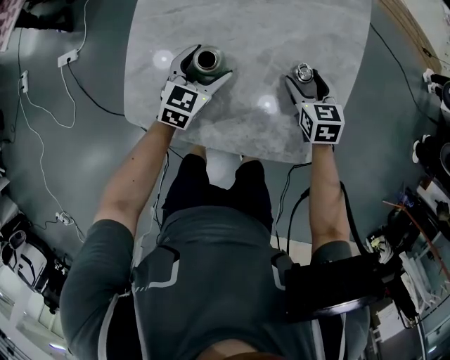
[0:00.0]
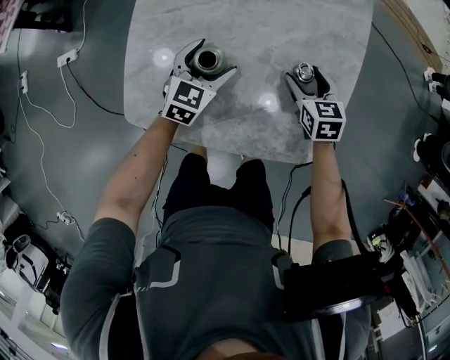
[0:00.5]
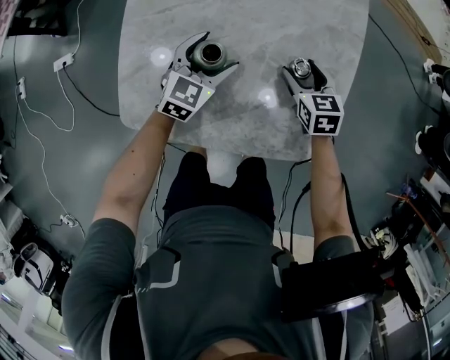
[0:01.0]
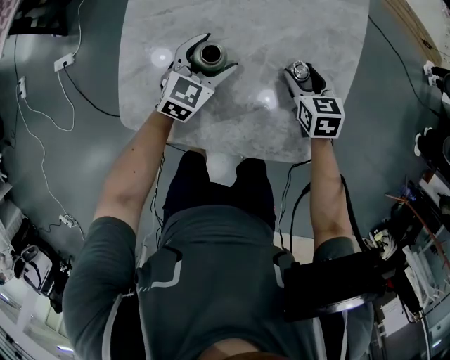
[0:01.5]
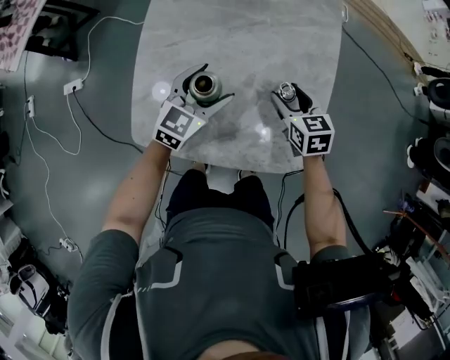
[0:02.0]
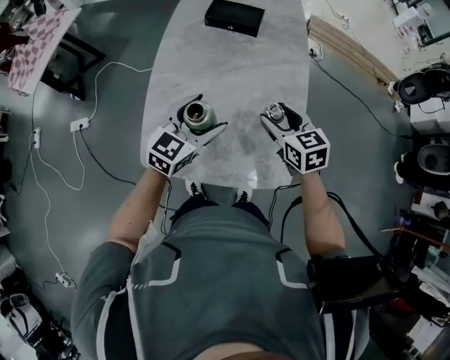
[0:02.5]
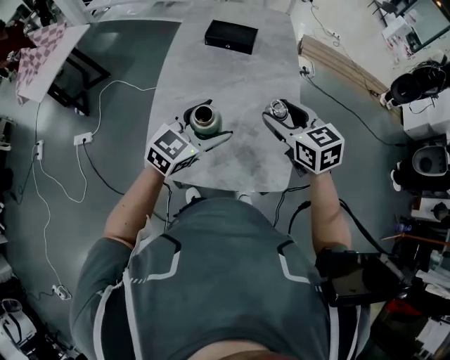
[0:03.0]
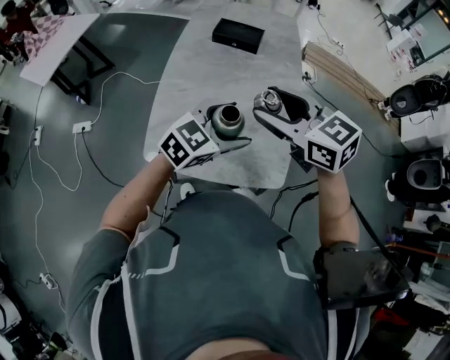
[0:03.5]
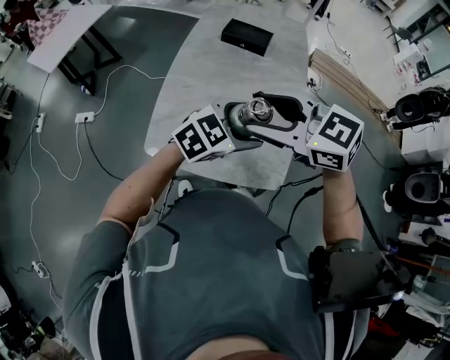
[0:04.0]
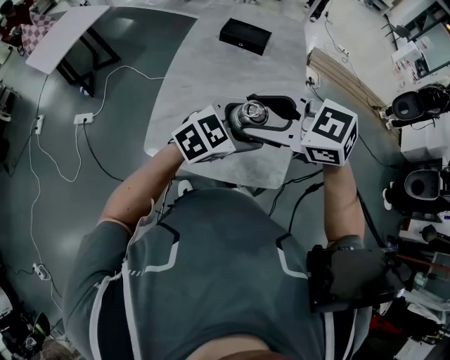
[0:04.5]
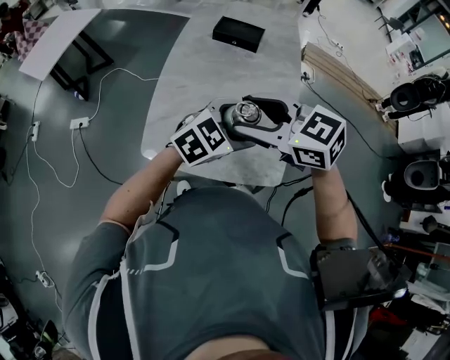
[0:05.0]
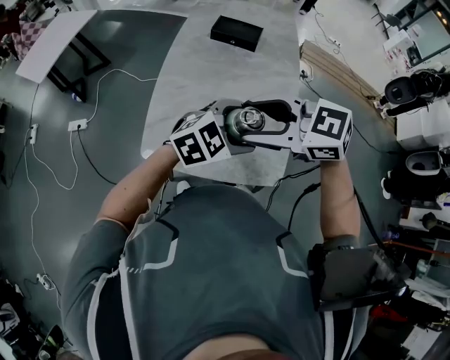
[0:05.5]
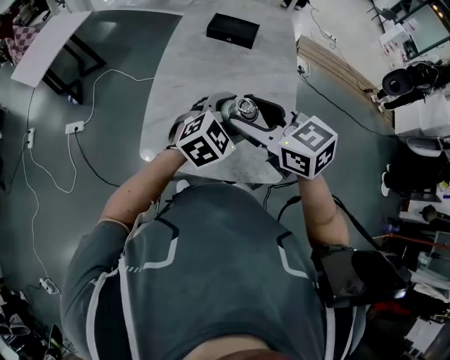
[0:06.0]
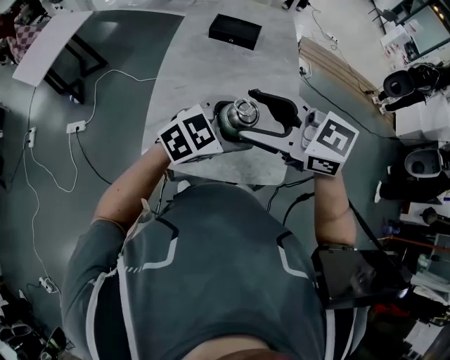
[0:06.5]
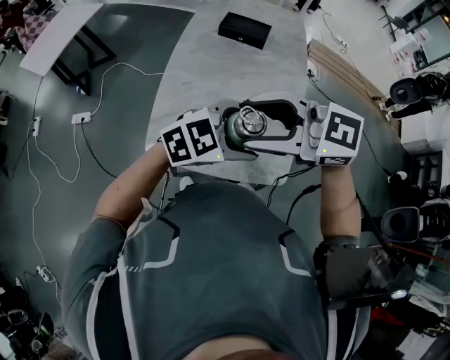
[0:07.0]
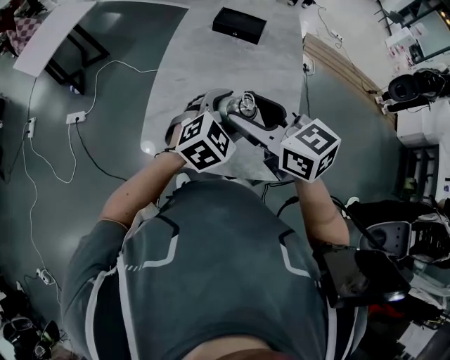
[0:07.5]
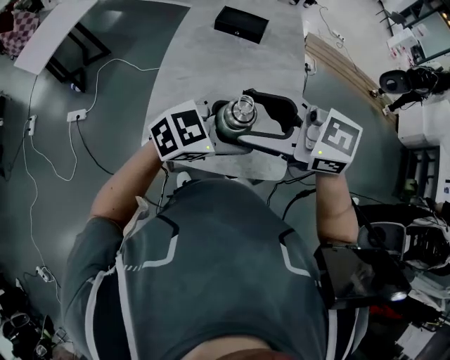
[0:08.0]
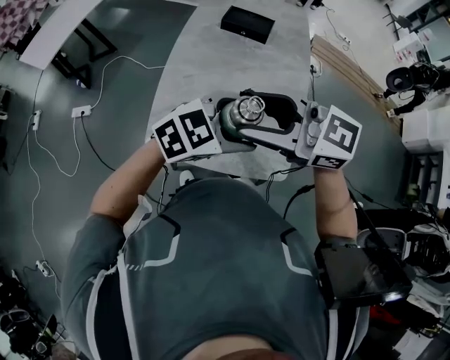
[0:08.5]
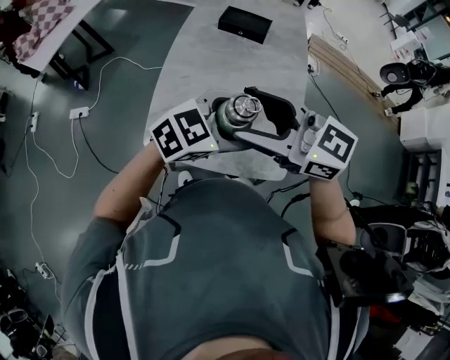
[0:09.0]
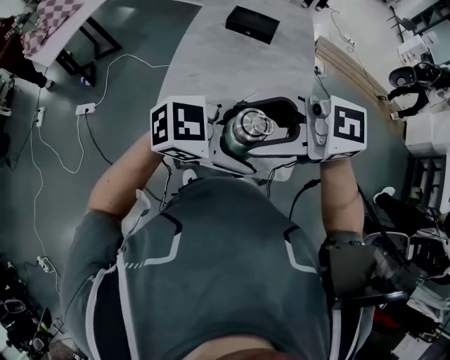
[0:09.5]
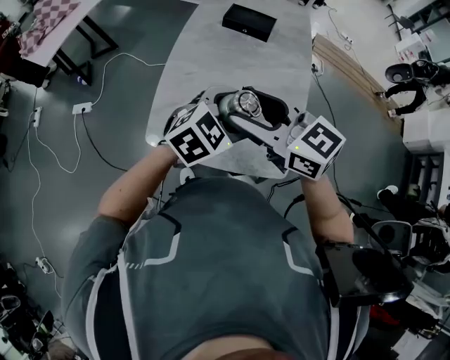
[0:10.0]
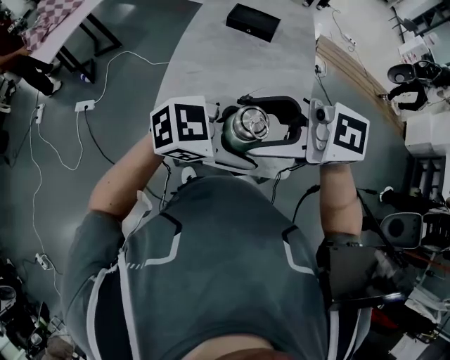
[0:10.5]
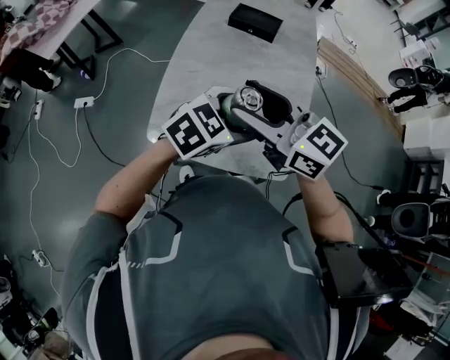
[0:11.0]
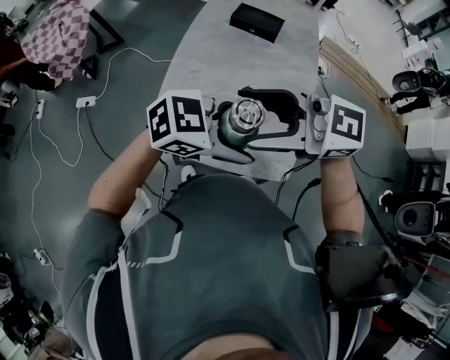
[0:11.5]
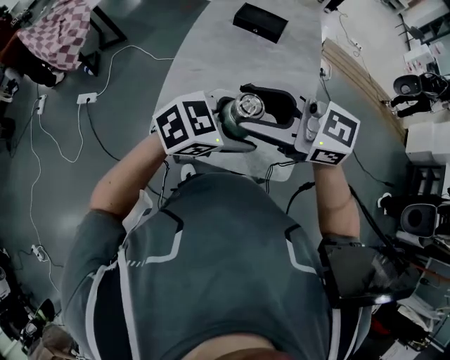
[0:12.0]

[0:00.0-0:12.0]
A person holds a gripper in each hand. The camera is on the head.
0:00.0 to 0:02.0: Both grippers move upward, some 10 cm.
0:02.0 to 0:04.0: The right gripper goes some 40 cm upward, and rotates roughly 50 degrees. The left gripper shifts some 25 cm upward, and changes its angle by roughly 20 degrees.
0:04.0 to 0:06.0: The left gripper shifts by roughly 5 cm, while the right gripper moves about 5 cm, and rotates some 20 degrees.
0:06.0 to 0:08.0: The right gripper goes up and down, about 5 cm each way, reversing 2 times, and swivels some 30 degrees; the left gripper swings up and down, roughly 5 cm each way, with 2 reversals, and changes its angle by roughly 30 degrees.
0:08.0 to 0:10.0: The left gripper shifts by about 5 cm, and swivels roughly 20 degrees.
0:10.0 to 0:12.0: The right gripper swivels approximately 20 degrees; the left gripper swings up and down, roughly 5 cm each way, with 2 reversals.

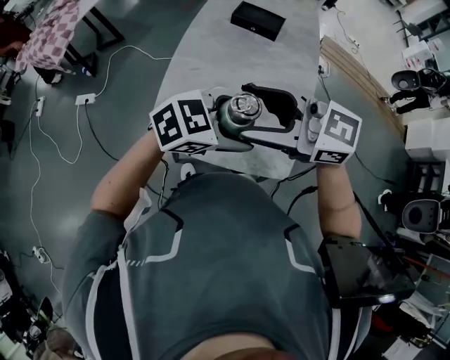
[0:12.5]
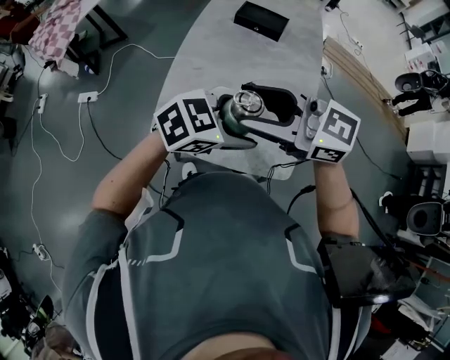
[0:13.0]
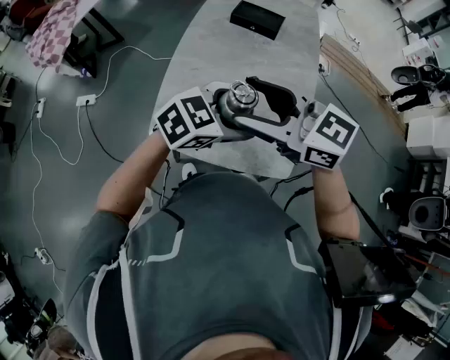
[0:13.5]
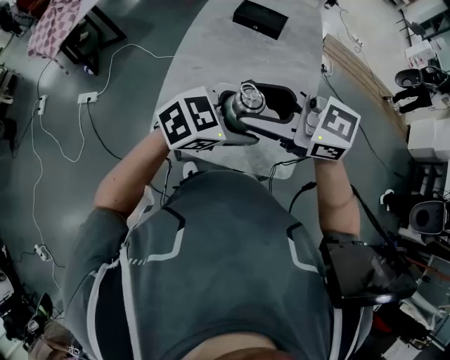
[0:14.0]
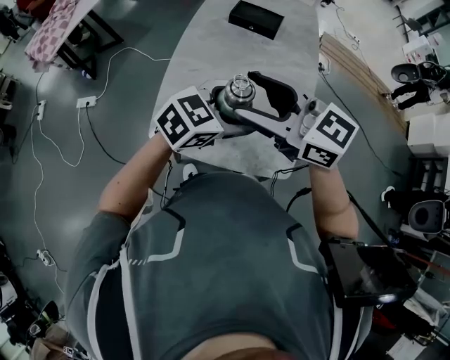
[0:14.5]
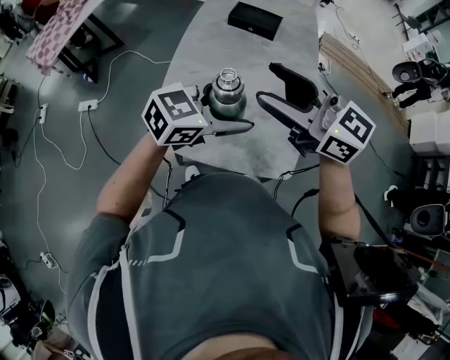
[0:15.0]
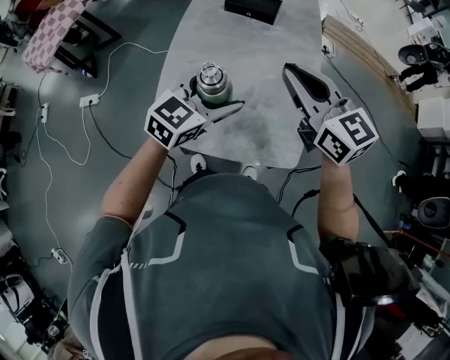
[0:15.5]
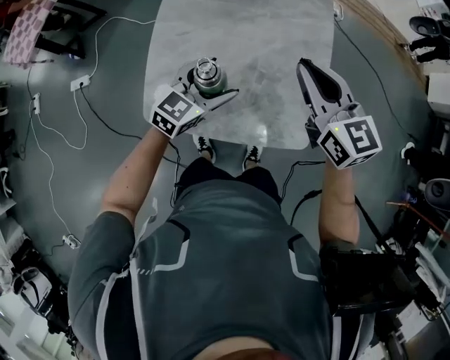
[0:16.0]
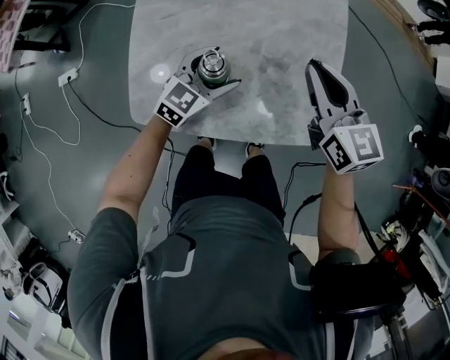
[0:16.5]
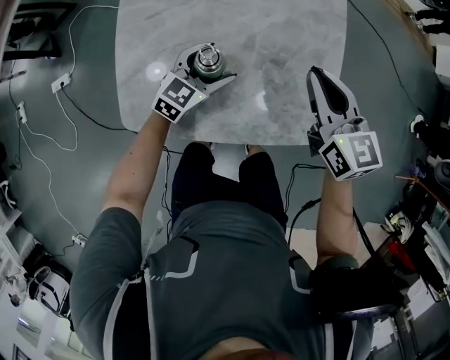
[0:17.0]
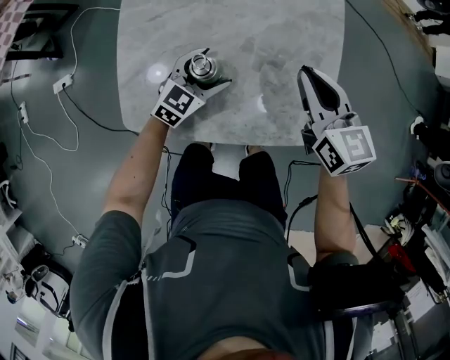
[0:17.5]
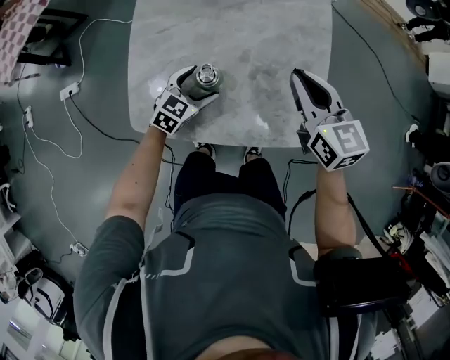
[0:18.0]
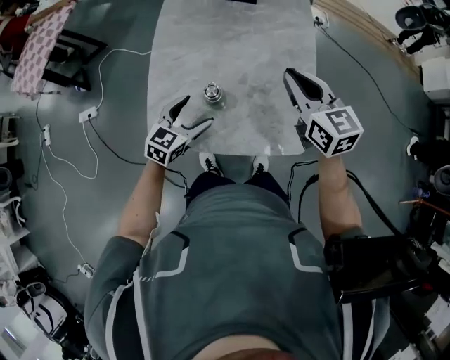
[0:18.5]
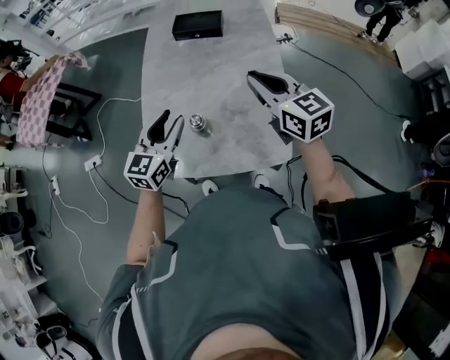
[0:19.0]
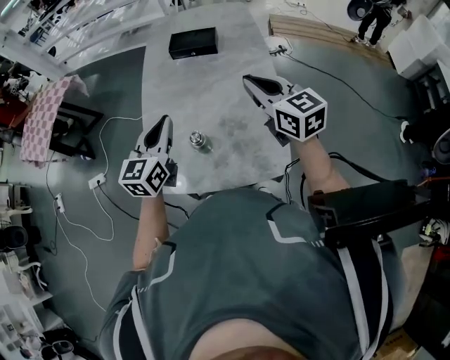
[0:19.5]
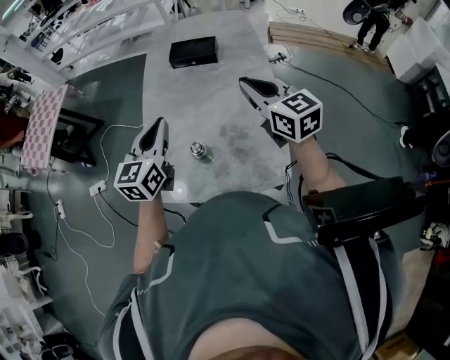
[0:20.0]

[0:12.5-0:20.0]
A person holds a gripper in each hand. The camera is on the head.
0:14.5 to 0:16.5: The grippers both shift downward by roughly 25 cm. The right gripper rotates about 50 degrees, and closes up.
0:16.5 to 0:18.0: The left gripper heads downward, covering roughly 5 cm.
0:18.0 to 0:20.0: The left gripper heads upward, covering roughly 35 cm, turns by roughly 40 degrees, and closes up. The right gripper moves upward, roughly 15 cm.

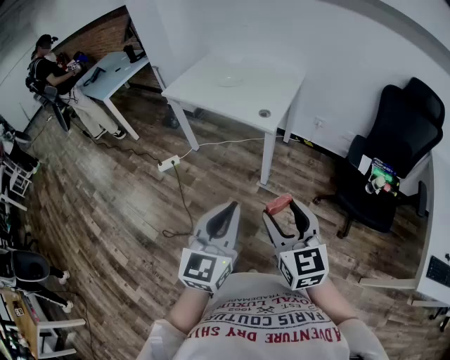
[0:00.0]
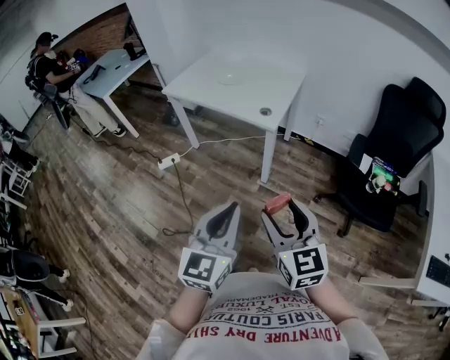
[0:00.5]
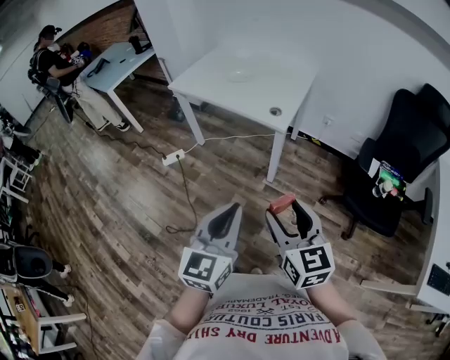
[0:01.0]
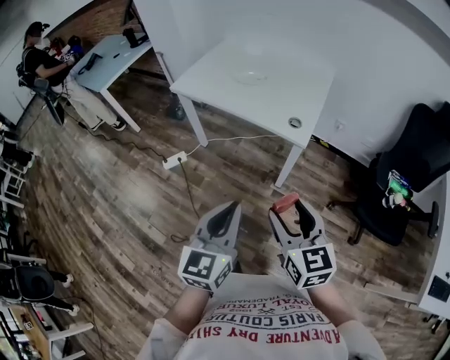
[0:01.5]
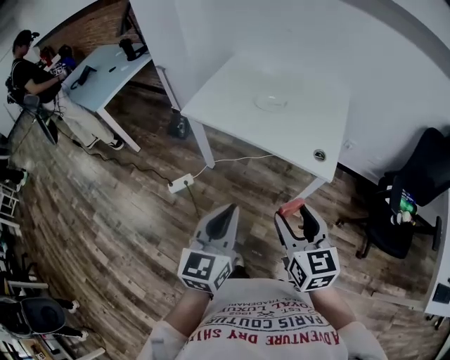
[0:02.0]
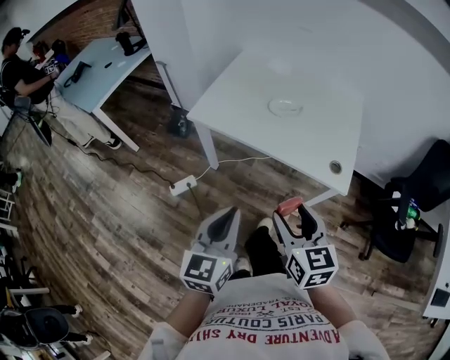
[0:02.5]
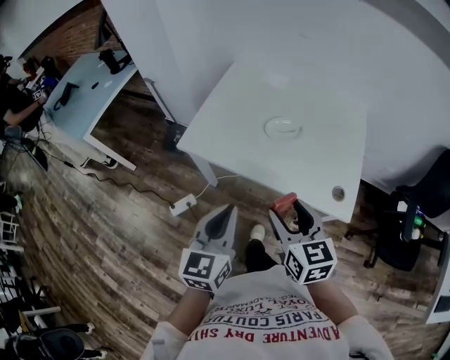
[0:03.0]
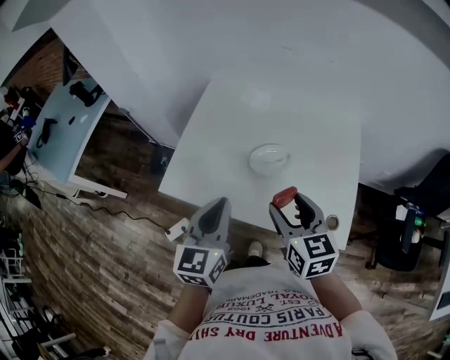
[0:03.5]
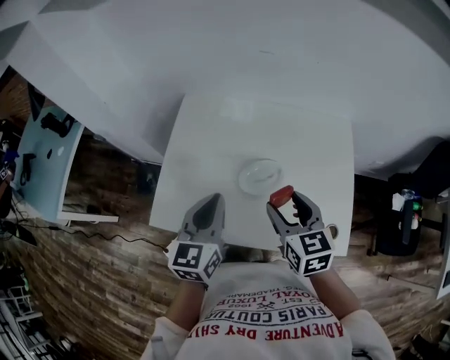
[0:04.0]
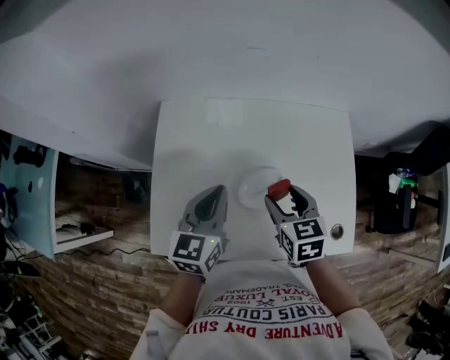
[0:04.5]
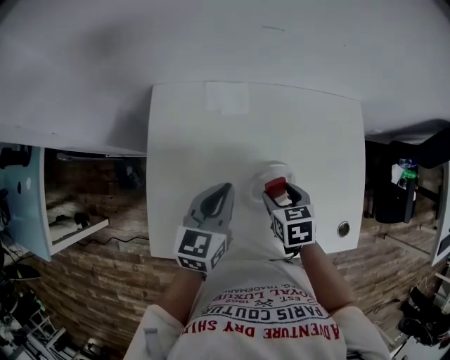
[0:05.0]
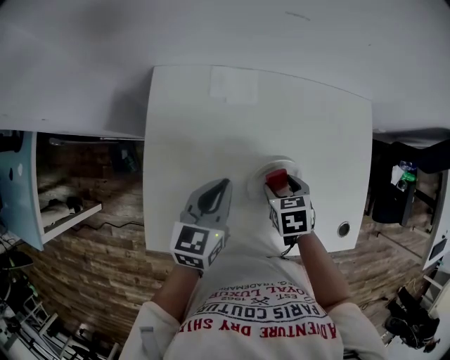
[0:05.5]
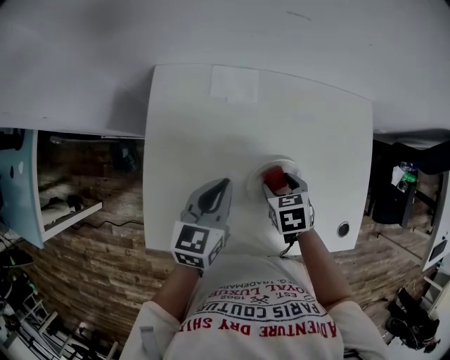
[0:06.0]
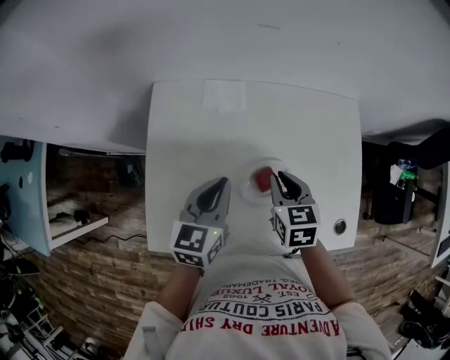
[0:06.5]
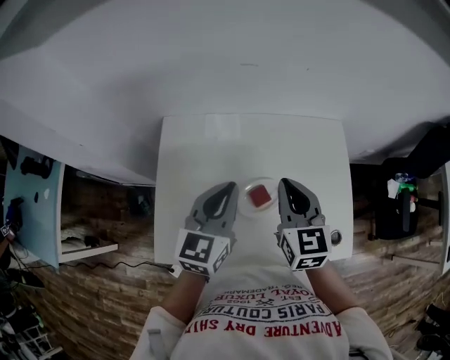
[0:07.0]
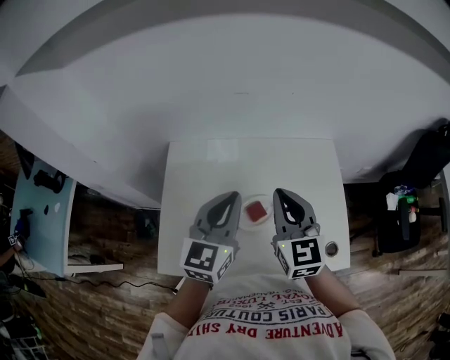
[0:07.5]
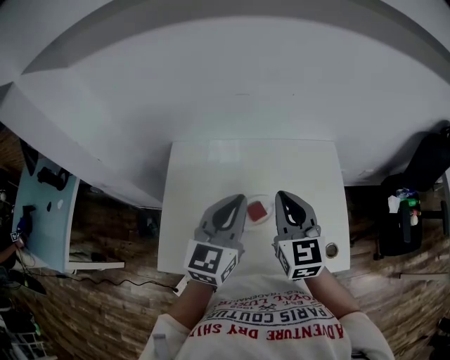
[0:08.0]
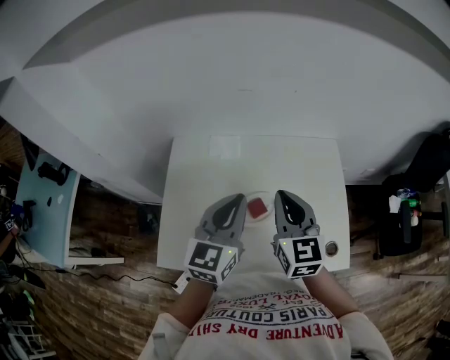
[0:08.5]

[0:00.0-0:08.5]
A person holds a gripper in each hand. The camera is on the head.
0:00.0 to 0:02.0: The two grippers go approximately 40 cm forward and to the left.
0:02.0 to 0:04.0: Both grippers are carried forward, roughly 50 cm.
0:04.0 to 0:06.5: Both grippers move forward and downward, about 15 cm. The right gripper closes.
0:06.5 to 0:08.5: The right gripper shifts roughly 20 cm upward, and tilts its fingers some 30 degrees upward. The left gripper moves upward and to the right, some 15 cm, and changes its angle by approximately 20 degrees.
